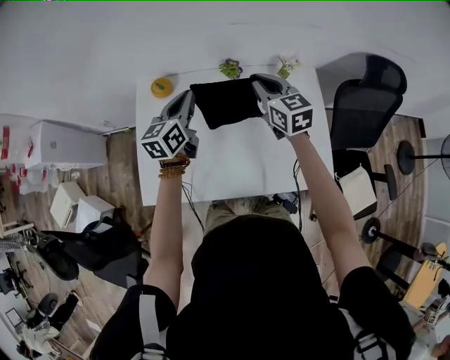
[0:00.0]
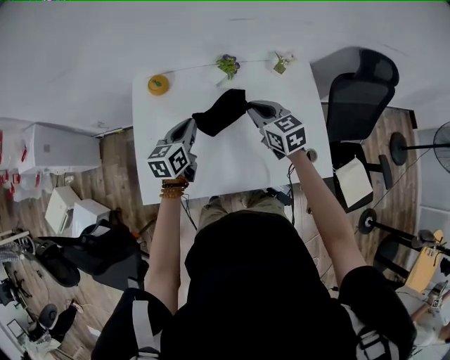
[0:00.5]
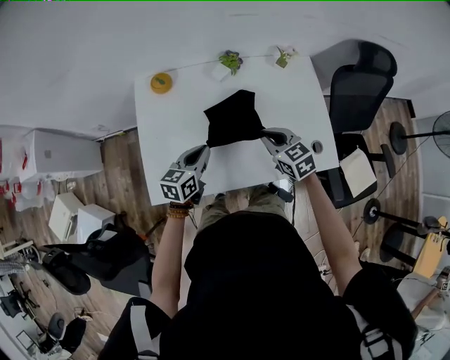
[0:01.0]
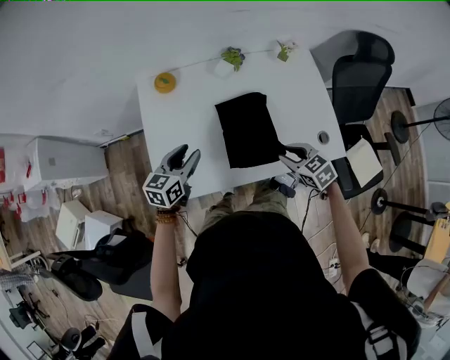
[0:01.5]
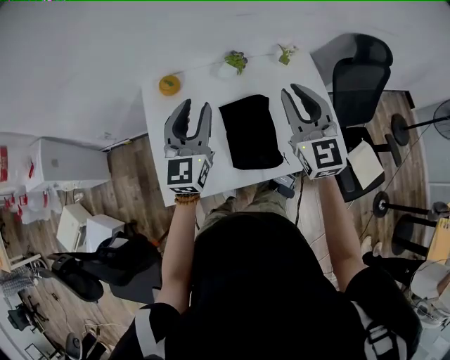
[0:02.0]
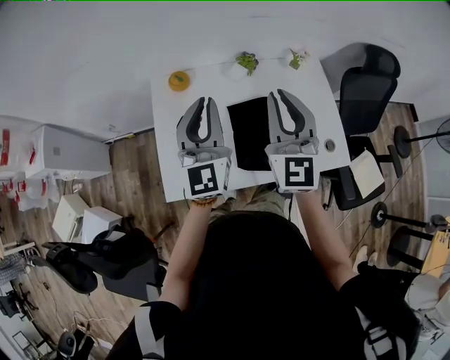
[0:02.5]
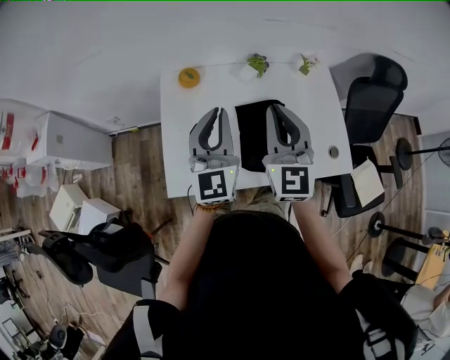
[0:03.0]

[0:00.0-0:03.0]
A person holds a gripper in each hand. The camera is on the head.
0:00.0 to 0:01.5: The left gripper shifts some 25 cm backward, downward and to the left, rotates some 20 degrees, and opens its fingers; the right gripper shifts some 30 cm backward and downward, and angles its fingers downward, by some 30 degrees.
0:01.5 to 0:03.0: The right gripper goes some 30 cm upward and to the left, and tilts its fingers some 50 degrees upward, while the left gripper is displaced upward by some 20 cm, points its fingers about 30 degrees further upward, and closes its fingers.

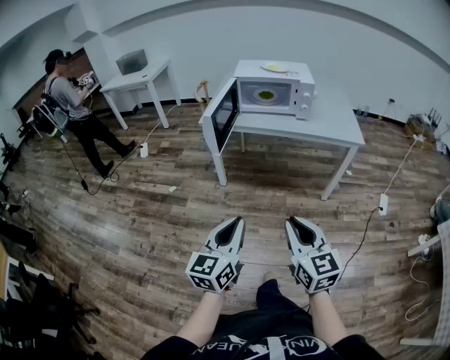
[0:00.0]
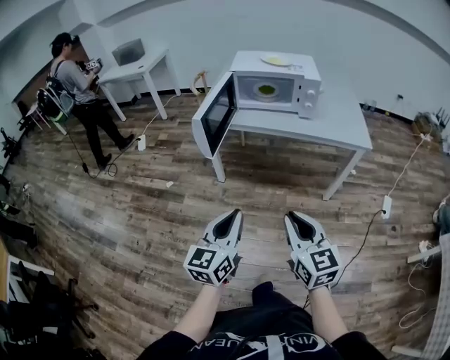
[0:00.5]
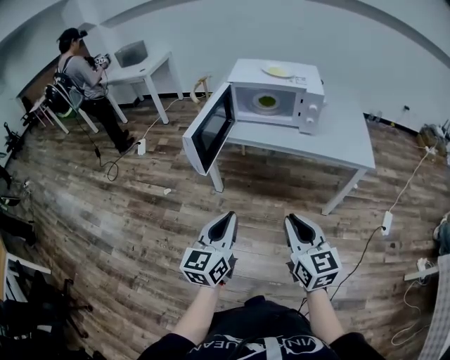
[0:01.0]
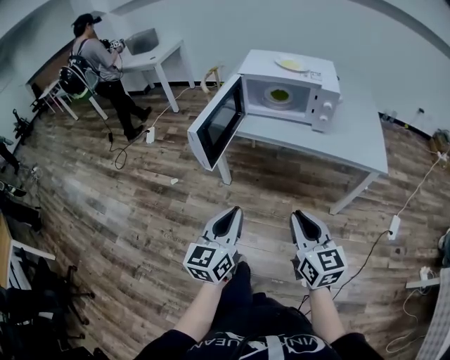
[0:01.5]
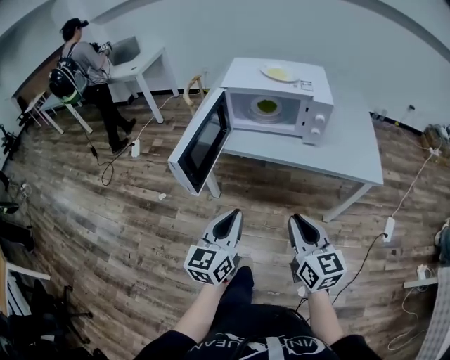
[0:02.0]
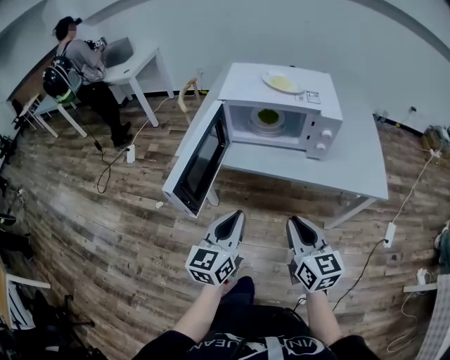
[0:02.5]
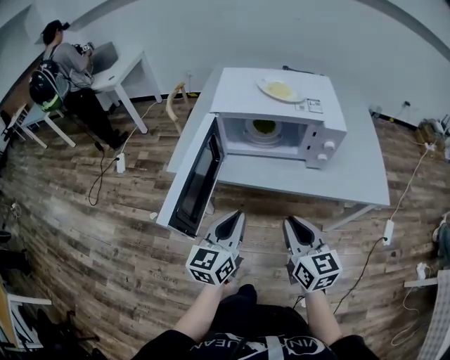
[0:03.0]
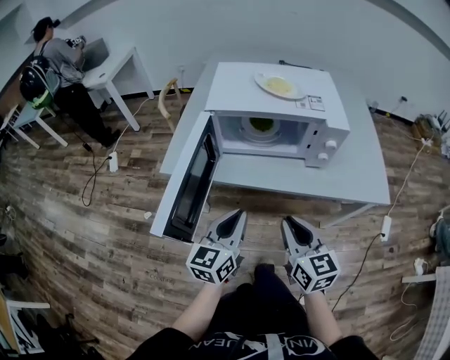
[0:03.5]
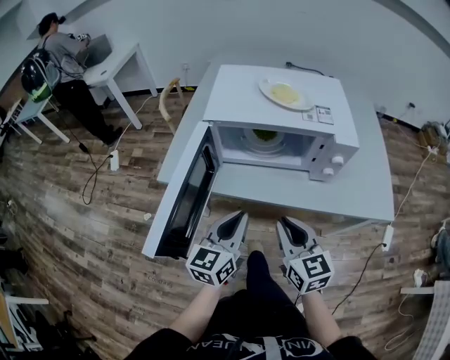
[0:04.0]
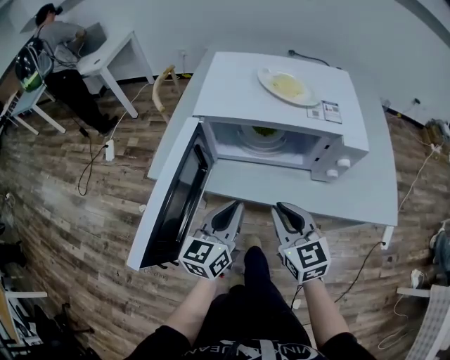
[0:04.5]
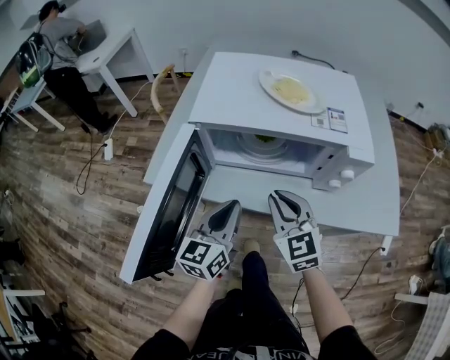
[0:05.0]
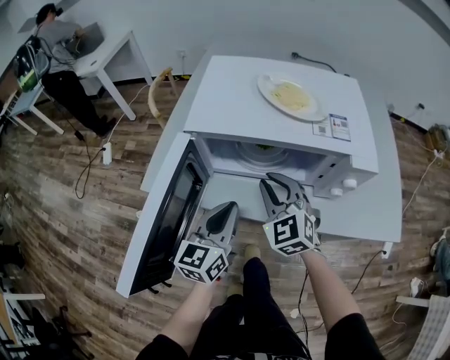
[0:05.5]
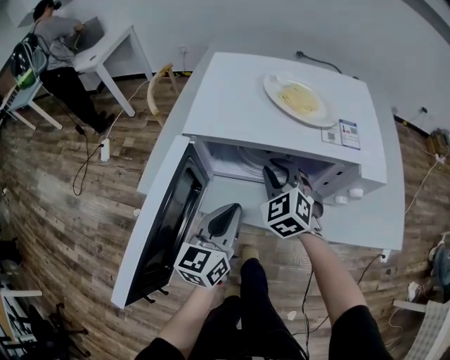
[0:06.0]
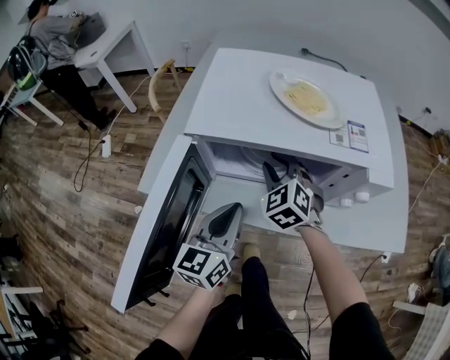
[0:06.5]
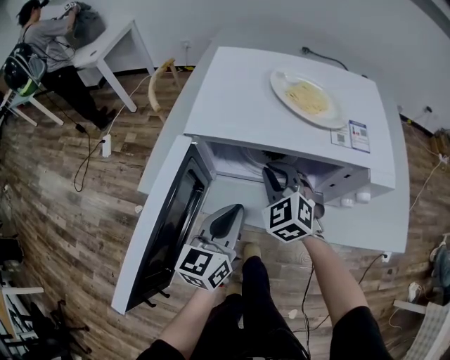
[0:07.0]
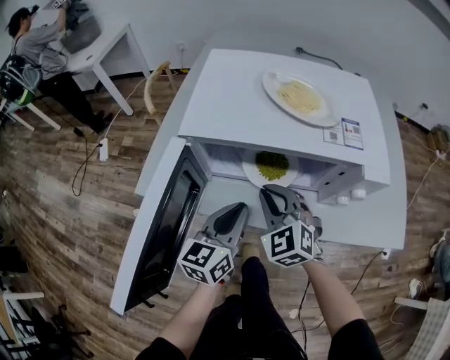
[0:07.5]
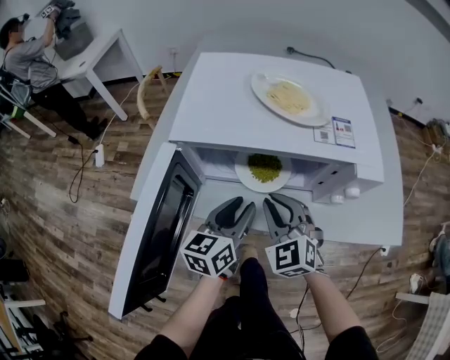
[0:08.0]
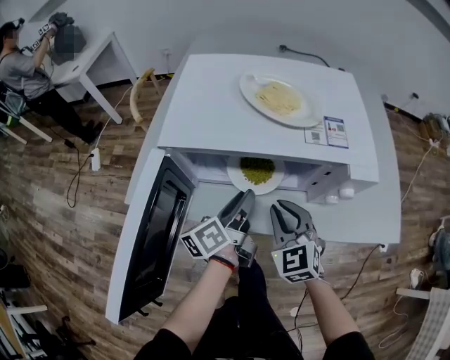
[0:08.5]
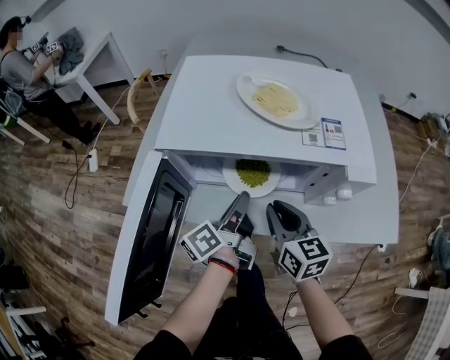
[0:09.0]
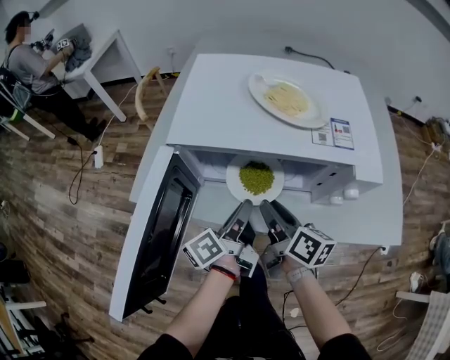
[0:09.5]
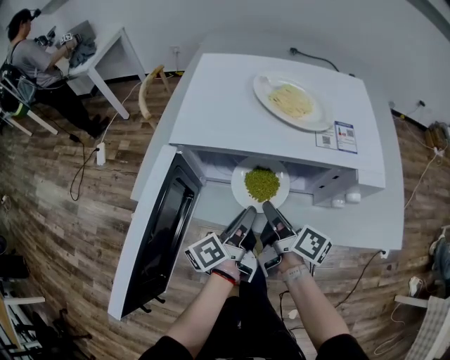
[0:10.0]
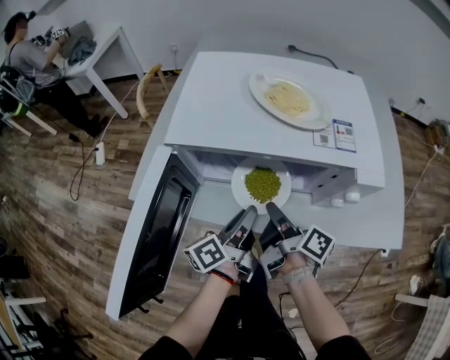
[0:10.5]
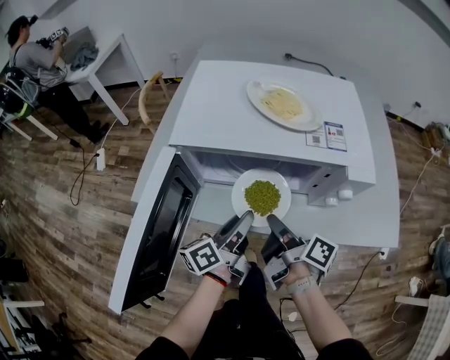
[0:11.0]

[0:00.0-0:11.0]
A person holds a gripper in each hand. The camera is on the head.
0:00.0 to 0:02.0: The grippers both shift forward by approximately 30 cm.
0:02.0 to 0:03.5: Both grippers move forward, roughly 20 cm.
0:03.5 to 0:05.5: The left gripper travels forward by approximately 15 cm; the right gripper is displaced forward by about 25 cm, and rotates around the line of its fingers by some 40 degrees, counterclockwise from behind.
0:05.5 to 0:07.5: The right gripper moves some 10 cm forward and comes back.
0:07.5 to 0:09.0: The left gripper shifts roughly 5 cm forward, rotates around the line of its fingers by roughly 50 degrees, counterclockwise from behind, and opens and closes again. Meanwhile the right gripper goes roughly 5 cm to the right, and rotates around the line of its fingers by some 50 degrees, clockwise from behind.
0:09.0 to 0:11.0: The right gripper rolls clockwise, seen from behind, by roughly 70 degrees. Meanwhile the left gripper shifts about 5 cm backward.

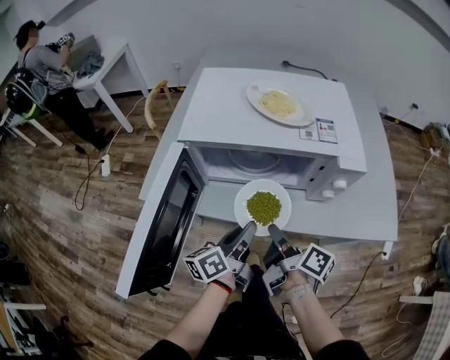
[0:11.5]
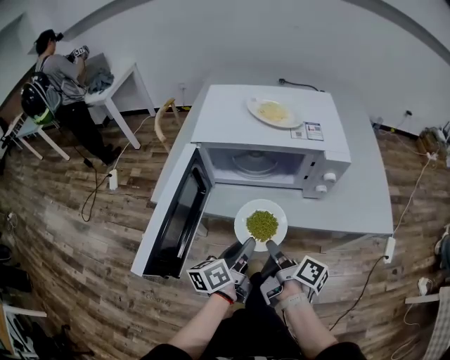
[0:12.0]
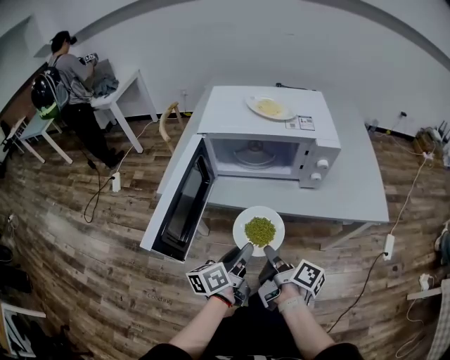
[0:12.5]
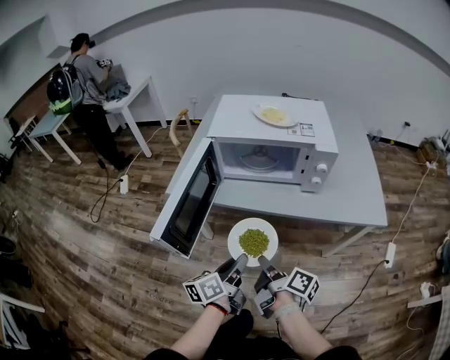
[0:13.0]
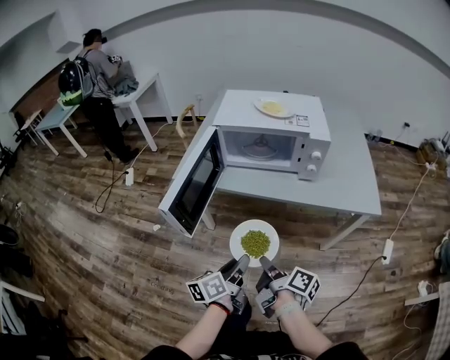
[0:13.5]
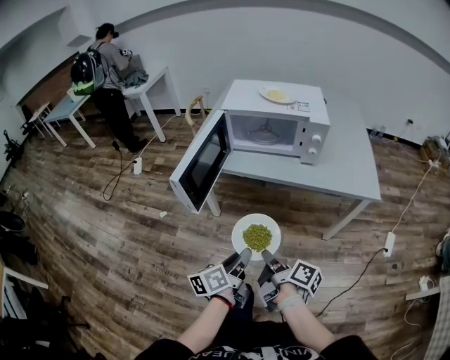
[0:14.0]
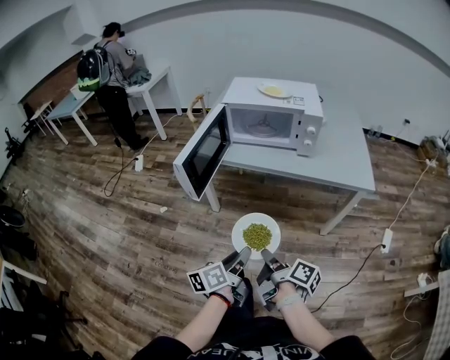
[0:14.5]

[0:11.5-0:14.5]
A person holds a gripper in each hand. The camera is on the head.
0:11.5 to 0:13.0: The grippers both shift backward by roughly 20 cm.
0:13.0 to 0:14.5: The grippers both shift backward by approximately 20 cm.

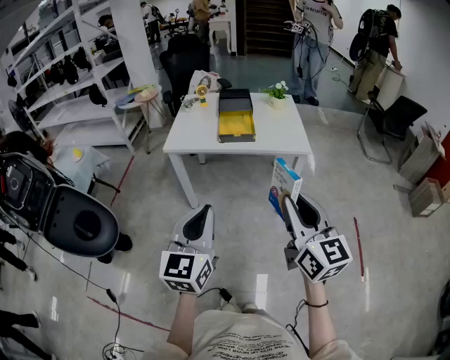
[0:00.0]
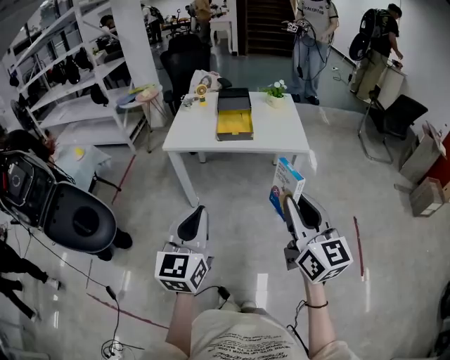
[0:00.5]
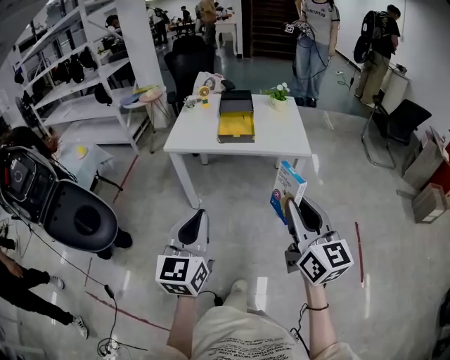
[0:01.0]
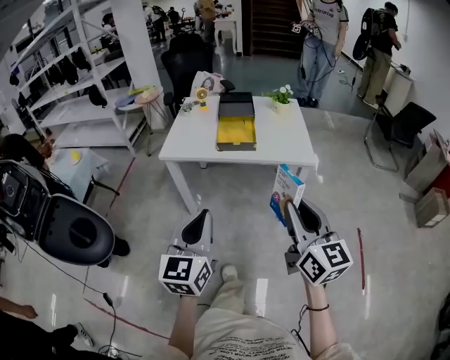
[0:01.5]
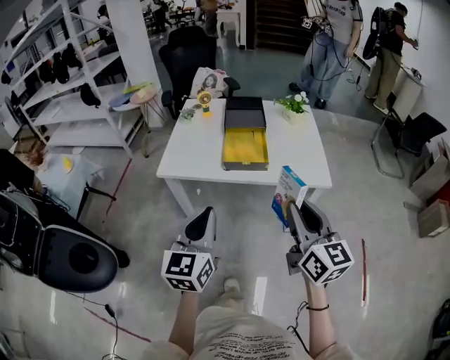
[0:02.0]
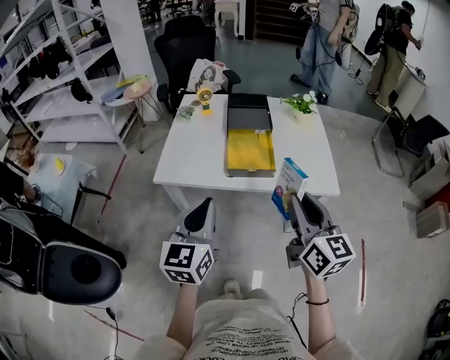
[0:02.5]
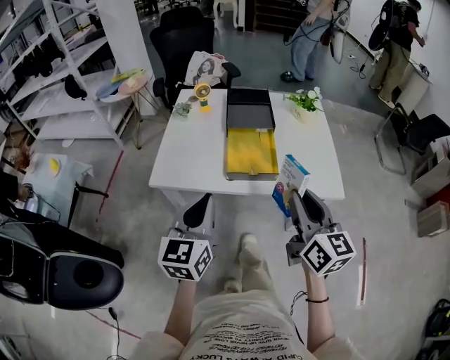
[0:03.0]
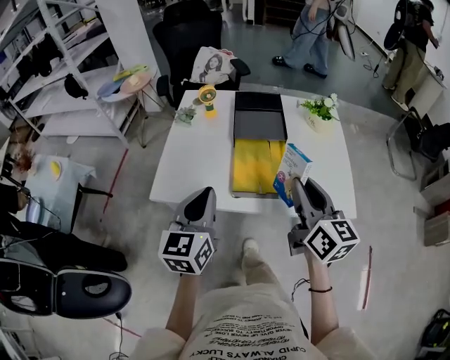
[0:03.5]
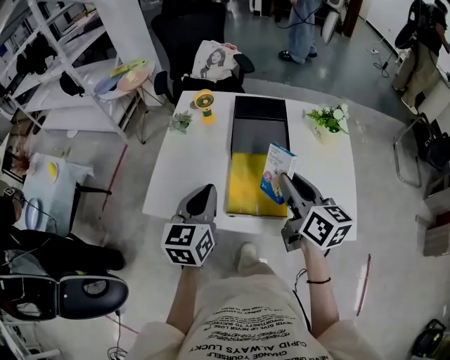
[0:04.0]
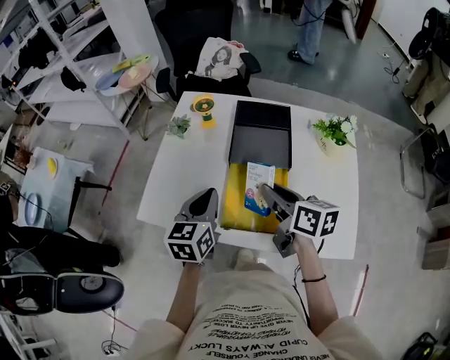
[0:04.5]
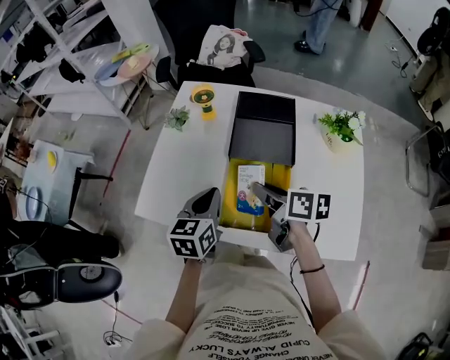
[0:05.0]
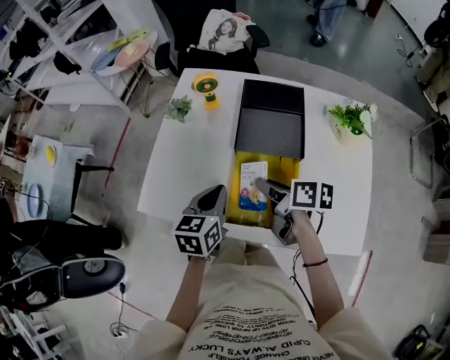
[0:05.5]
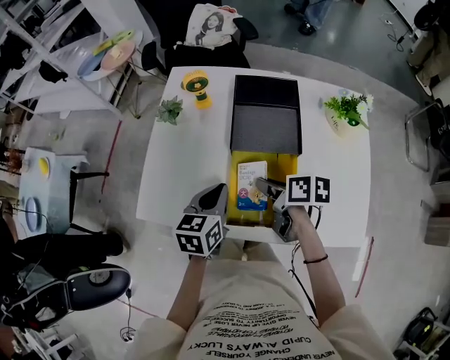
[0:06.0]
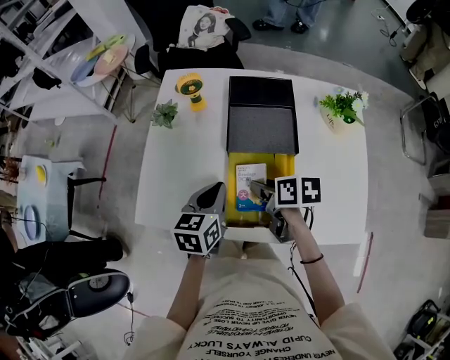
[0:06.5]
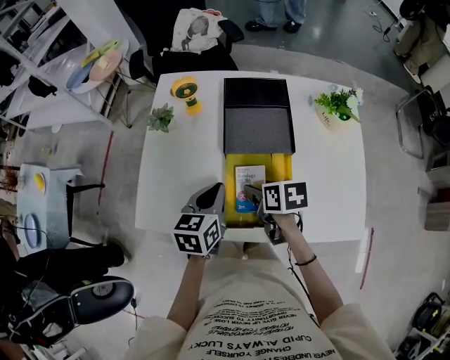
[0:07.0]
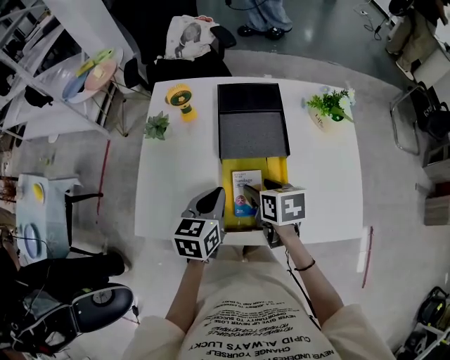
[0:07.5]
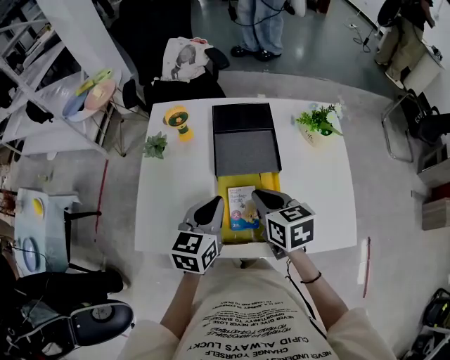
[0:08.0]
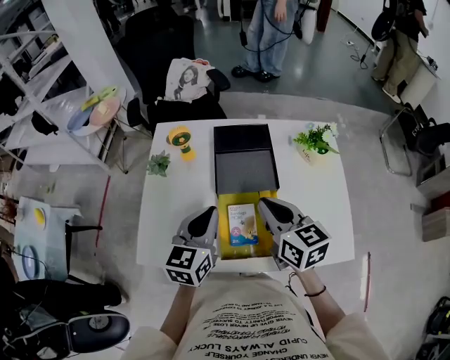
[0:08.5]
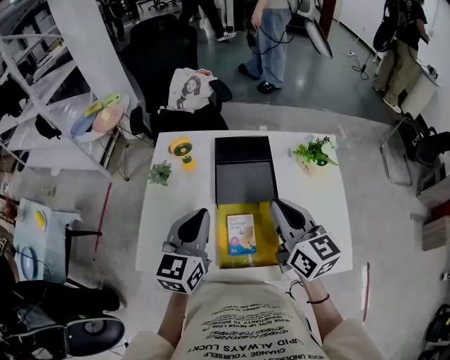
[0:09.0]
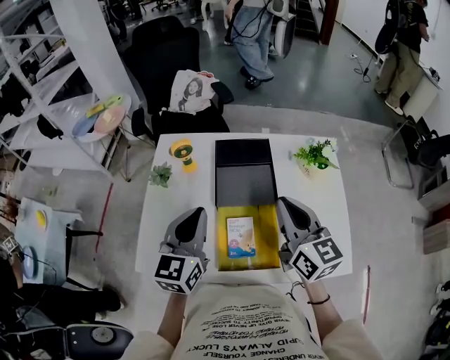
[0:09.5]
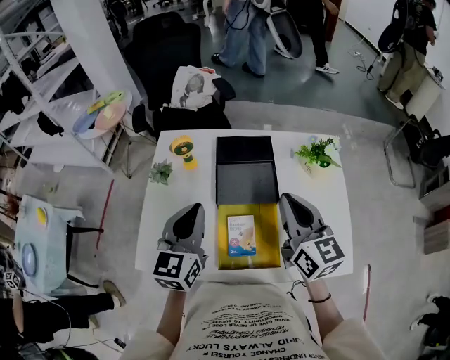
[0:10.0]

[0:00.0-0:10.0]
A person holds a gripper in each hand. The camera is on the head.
0:00.0 to 0:02.0: The grippers both shift forward by roughly 25 cm.
0:02.0 to 0:04.0: Both grippers move forward, approximately 35 cm. The right gripper rotates about 20 degrees.
0:04.0 to 0:06.0: Both grippers move downward and forward, some 15 cm. The left gripper turns by some 20 degrees; the right gripper swivels roughly 50 degrees.
0:06.0 to 0:08.0: The grippers both shift upward by about 5 cm. The right gripper swivels some 40 degrees, and opens, then closes again.
0:08.0 to 0:10.0: The right gripper travels upward and to the right by roughly 15 cm, and points its fingers approximately 30 degrees further upward, while the left gripper heads upward, covering about 10 cm.
